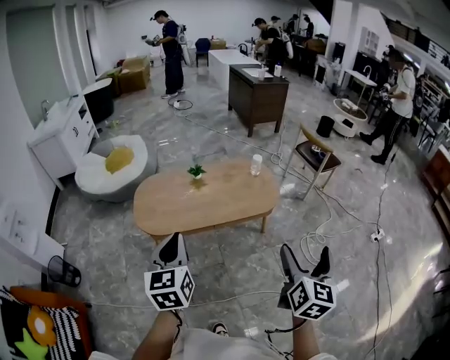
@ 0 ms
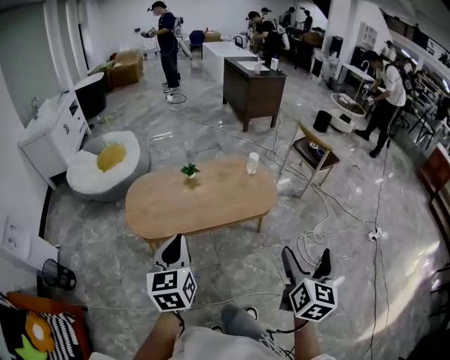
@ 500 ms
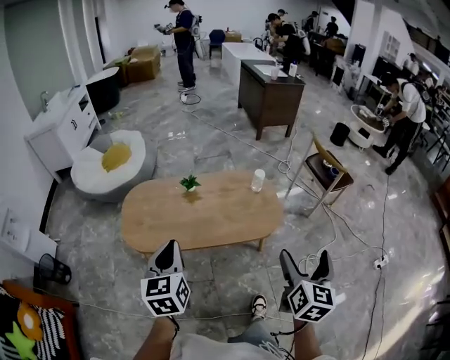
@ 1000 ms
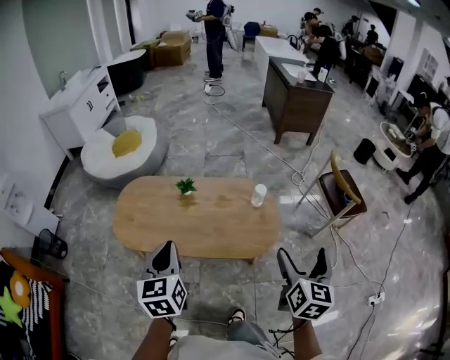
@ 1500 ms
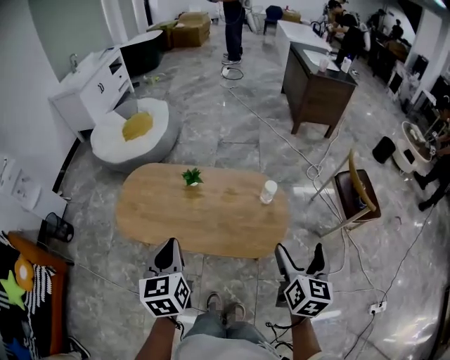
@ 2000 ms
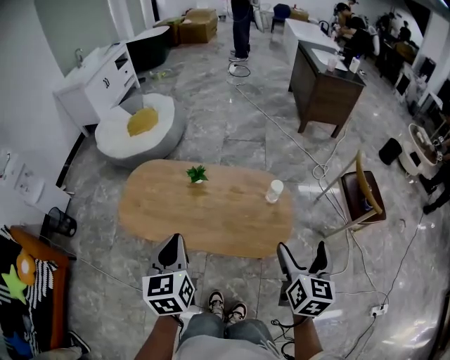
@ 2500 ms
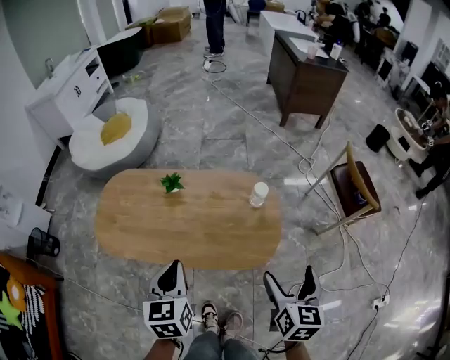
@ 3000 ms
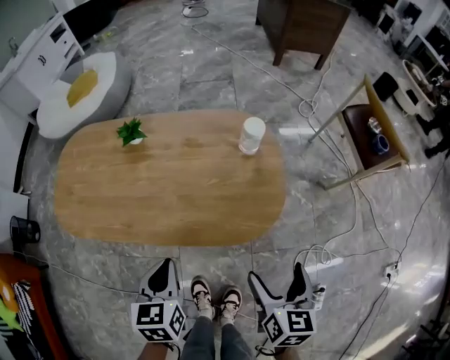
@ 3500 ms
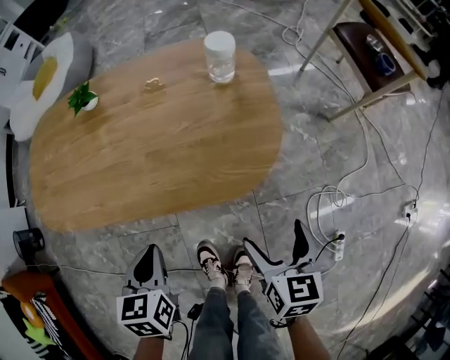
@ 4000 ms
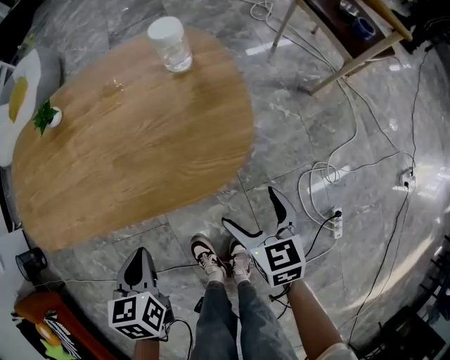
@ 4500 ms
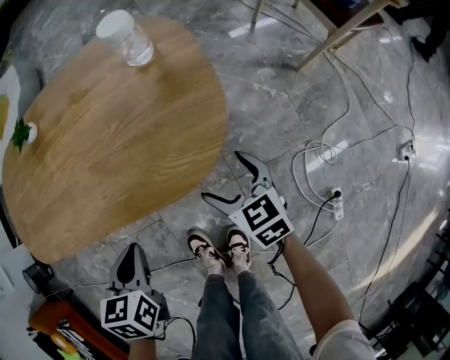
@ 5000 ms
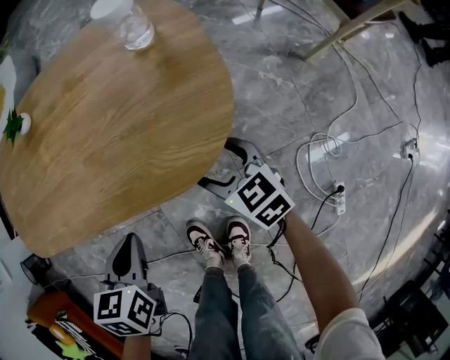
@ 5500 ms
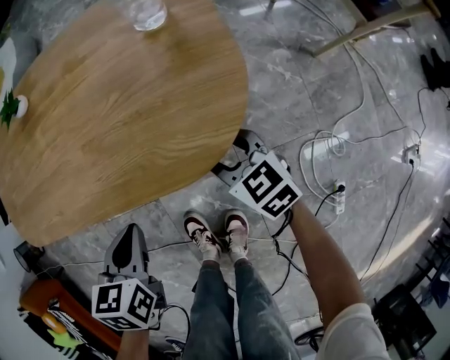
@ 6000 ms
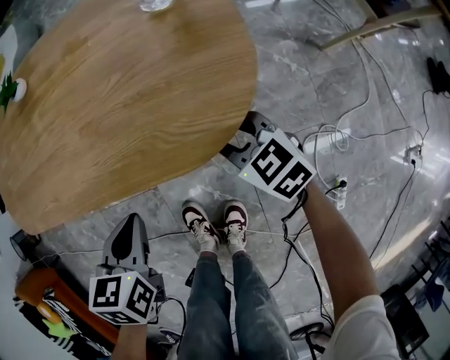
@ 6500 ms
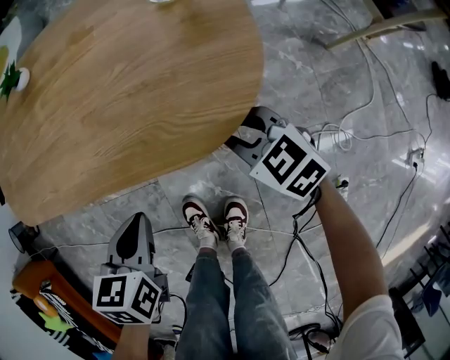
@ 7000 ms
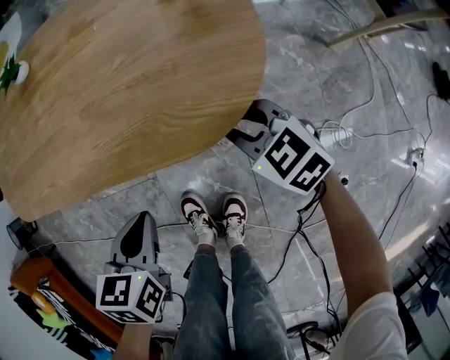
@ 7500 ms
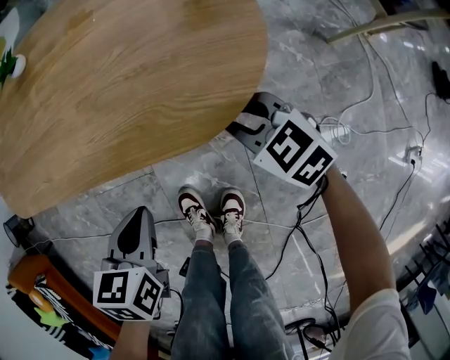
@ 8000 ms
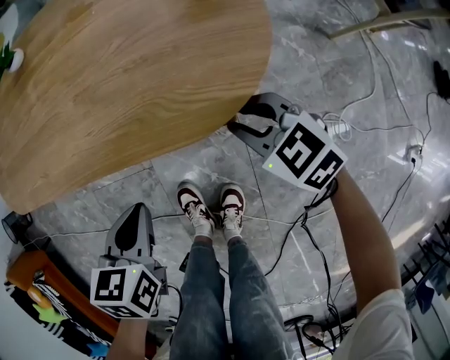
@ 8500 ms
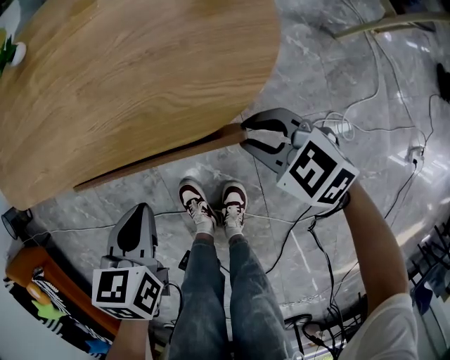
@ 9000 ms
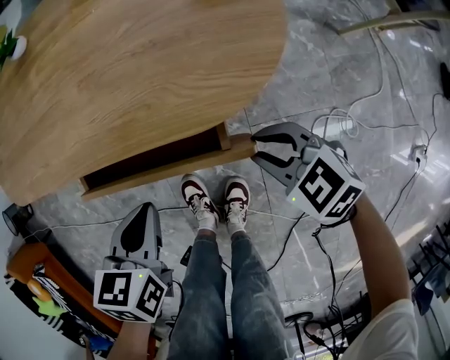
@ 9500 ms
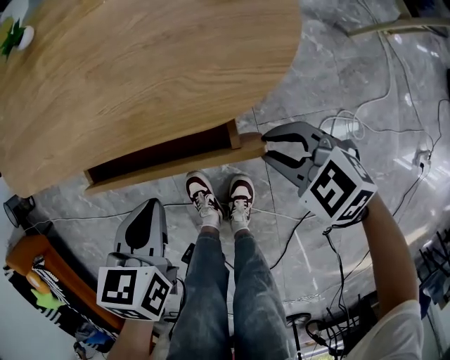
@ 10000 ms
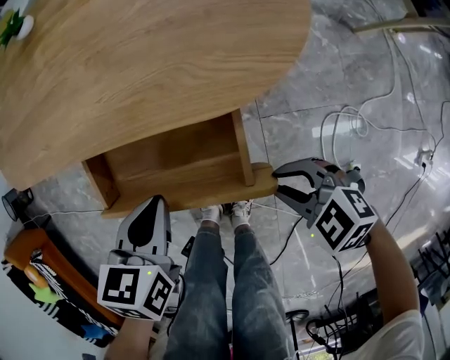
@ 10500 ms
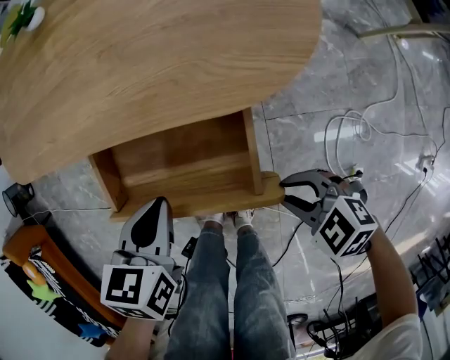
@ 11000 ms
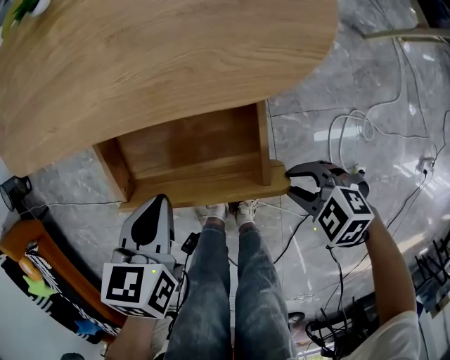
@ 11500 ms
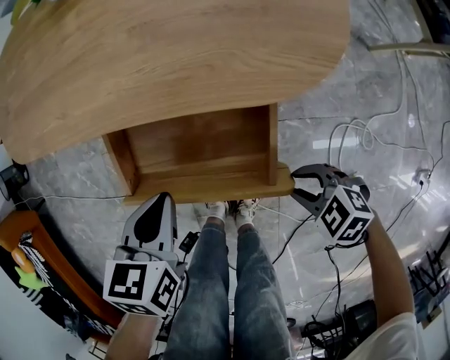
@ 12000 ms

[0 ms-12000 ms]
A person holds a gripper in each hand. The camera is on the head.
0 ms to 2000 ms: The left gripper shifts by about 35 cm, and rotates roughly 30 degrees. Meanwhile the right gripper ends up approximately 50 cm from where it was, and rotates some 30 degrees.
2000 ms to 4000 ms: Both grippers move downward, approximately 40 cm. The left gripper rotates roughly 30 degrees.
4000 ms to 6000 ms: The right gripper heads downward and forward, covering roughly 15 cm, changes its angle by some 40 degrees, and closes its fingers, while the left gripper moves downward and to the right, approximately 10 cm.
6000 ms to 8000 ms: The grippers make only small movements.
8000 ms to 10000 ms: The right gripper moves backward, approximately 10 cm.
10000 ms to 12000 ms: The left gripper heads to the left, covering some 5 cm; the right gripper is displaced backward, to the left and downward by roughly 15 cm.

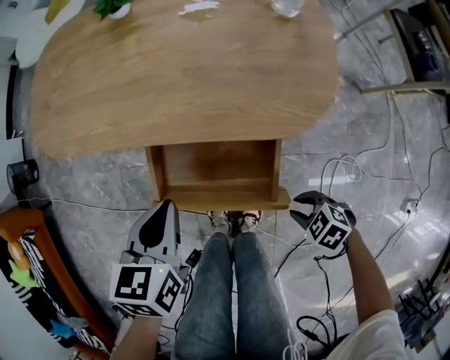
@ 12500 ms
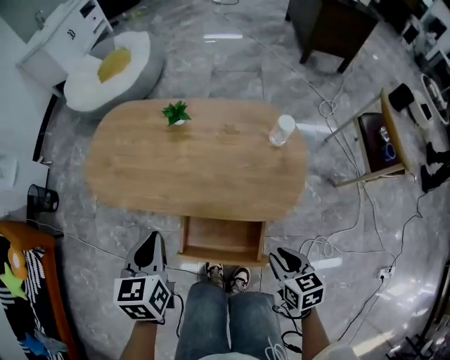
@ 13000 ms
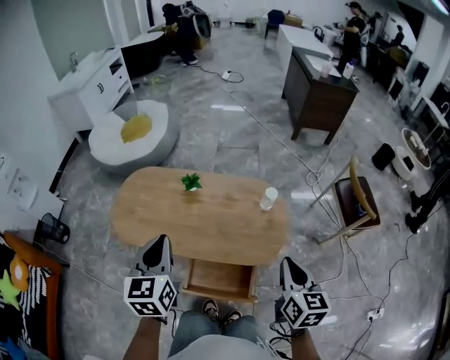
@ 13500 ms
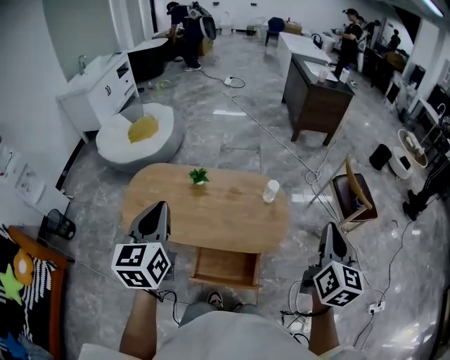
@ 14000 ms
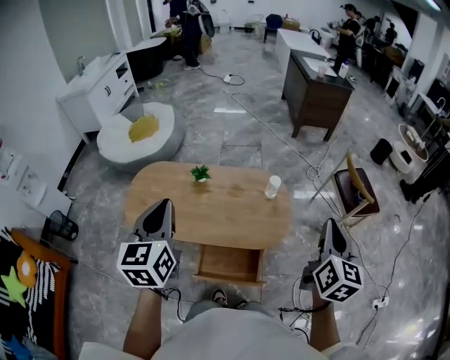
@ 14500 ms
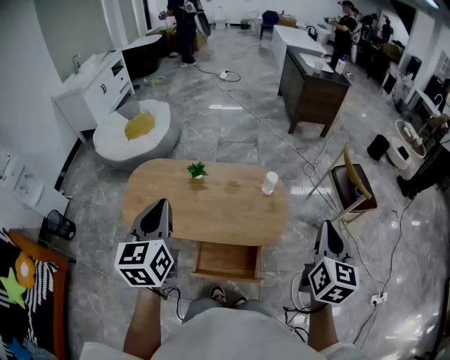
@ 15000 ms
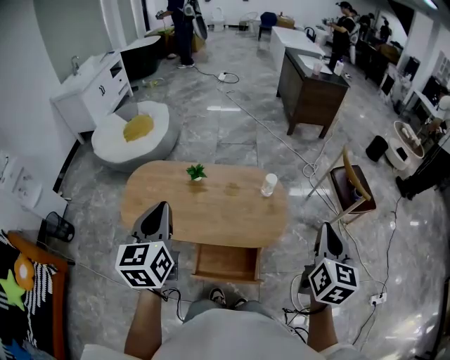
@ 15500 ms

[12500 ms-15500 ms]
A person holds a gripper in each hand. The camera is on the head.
12500 ms to 14000 ms: The two grippers go about 60 cm upward. The right gripper tips its fingers upward by about 60 degrees. The left gripper angles its fingers upward, by approximately 40 degrees.
14000 ms to 15500 ms: The grippers make only small movements.

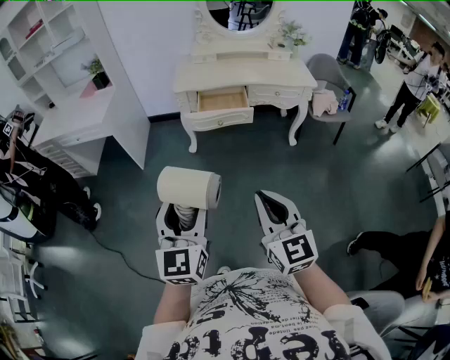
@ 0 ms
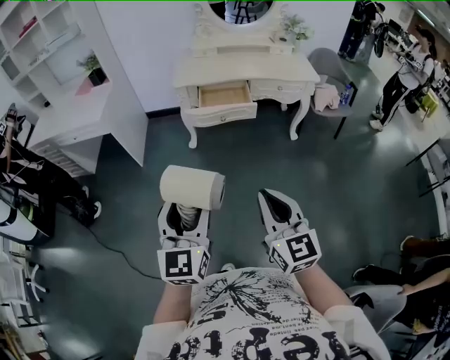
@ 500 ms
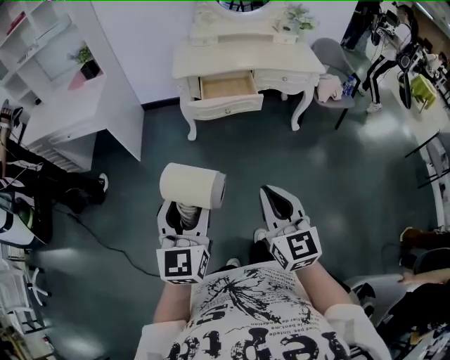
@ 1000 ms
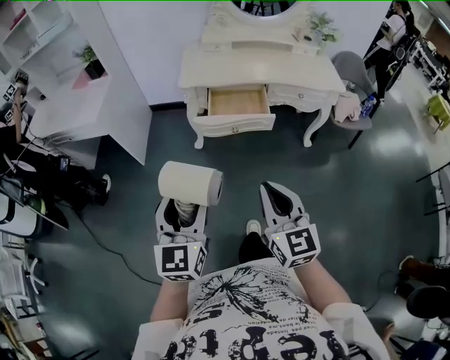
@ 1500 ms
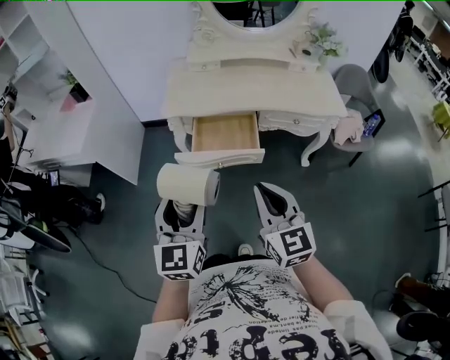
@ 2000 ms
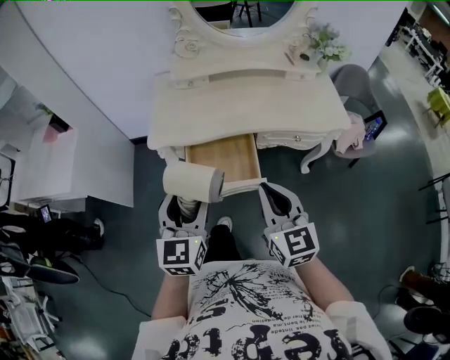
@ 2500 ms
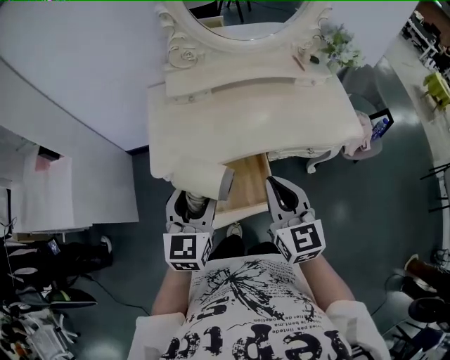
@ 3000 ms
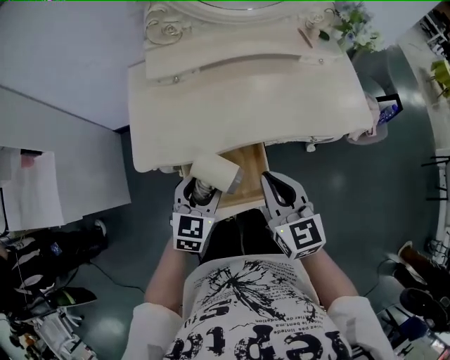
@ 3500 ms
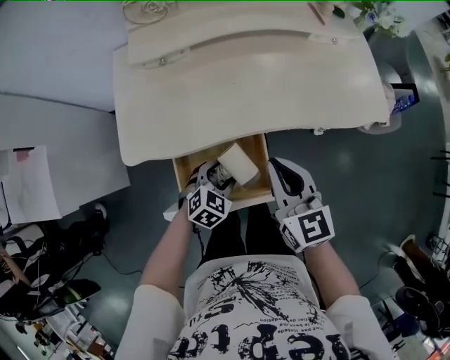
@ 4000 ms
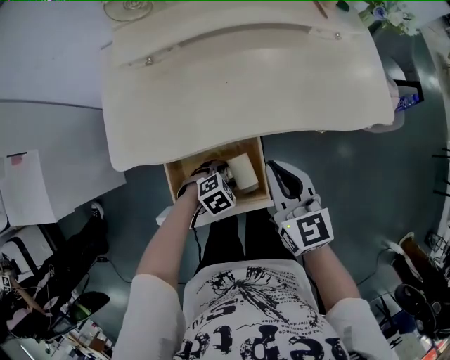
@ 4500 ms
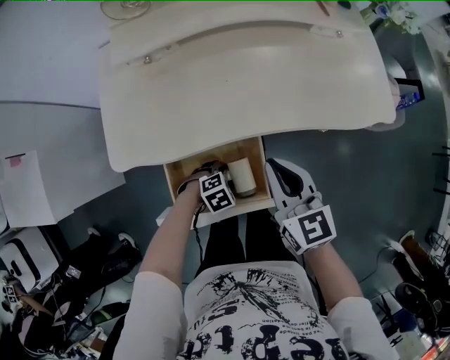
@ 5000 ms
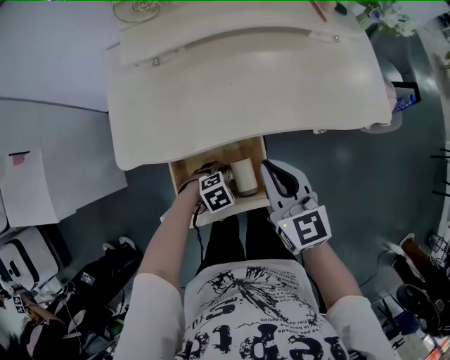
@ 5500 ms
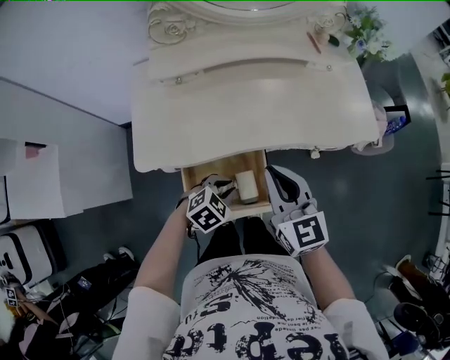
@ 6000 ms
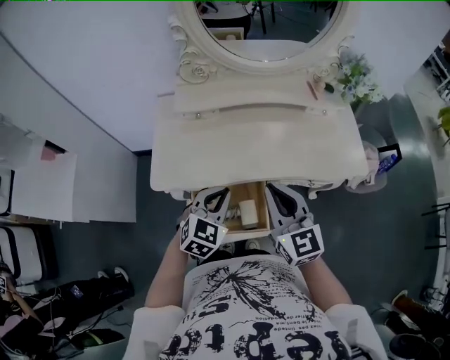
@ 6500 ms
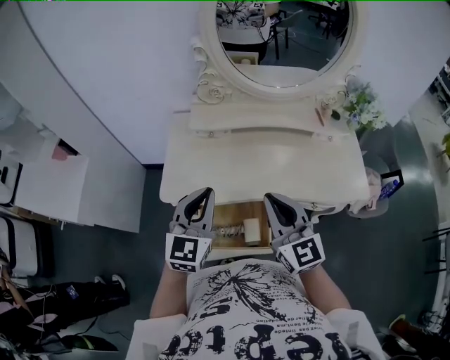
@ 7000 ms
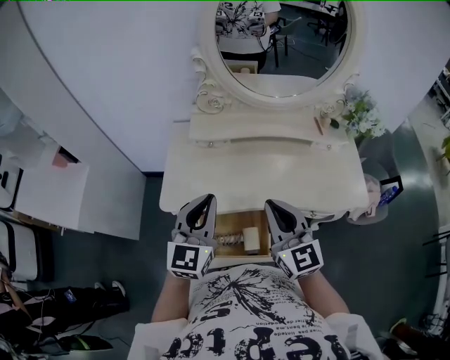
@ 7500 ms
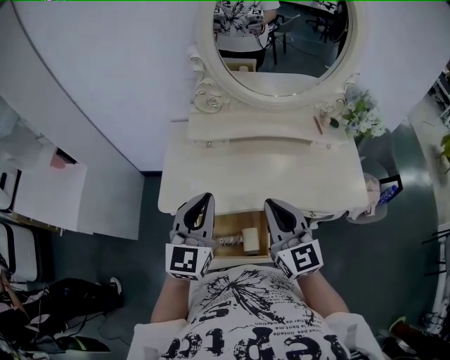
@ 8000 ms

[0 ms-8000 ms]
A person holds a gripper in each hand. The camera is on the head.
0 ms to 2000 ms: The grippers both shift forward by about 40 cm.
2000 ms to 4000 ms: The right gripper changes place by about 40 cm. The left gripper changes place by roughly 50 cm, and tilts its fingers some 40 degrees downward.
4000 ms to 6000 ms: The right gripper travels upward by approximately 5 cm. Meanwhile the left gripper reaches some 10 cm downward, then returns, and closes up.
6000 ms to 8000 ms: The left gripper travels upward by about 30 cm, and tilts its fingers approximately 50 degrees upward. The right gripper travels upward by approximately 10 cm.

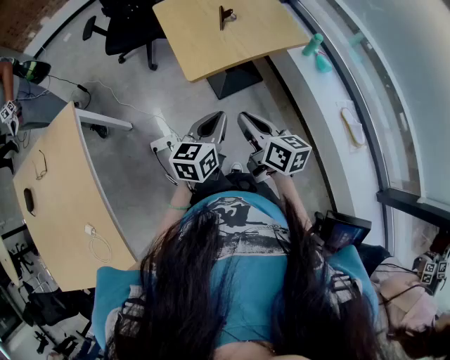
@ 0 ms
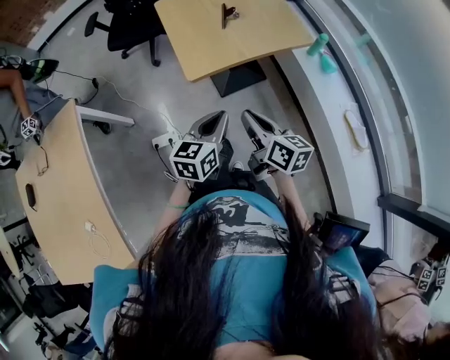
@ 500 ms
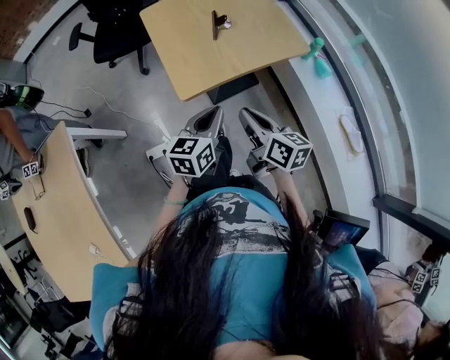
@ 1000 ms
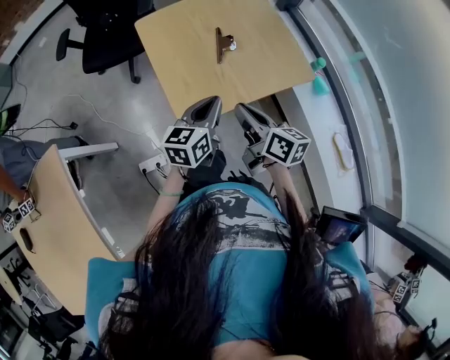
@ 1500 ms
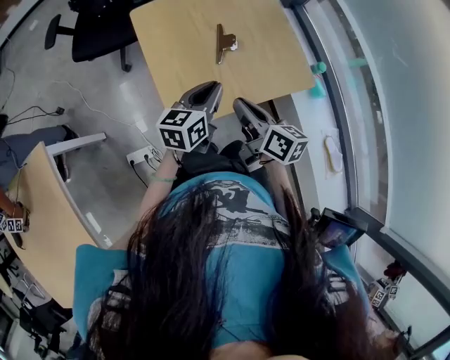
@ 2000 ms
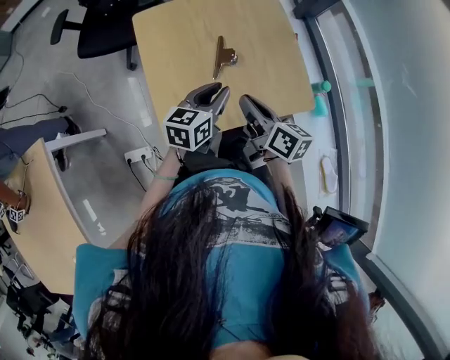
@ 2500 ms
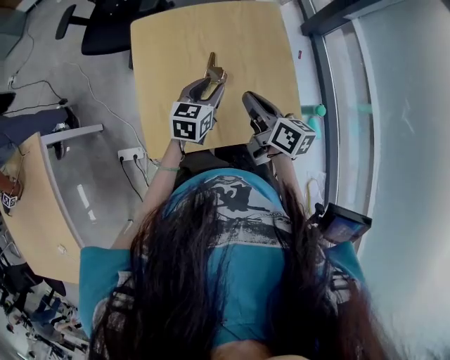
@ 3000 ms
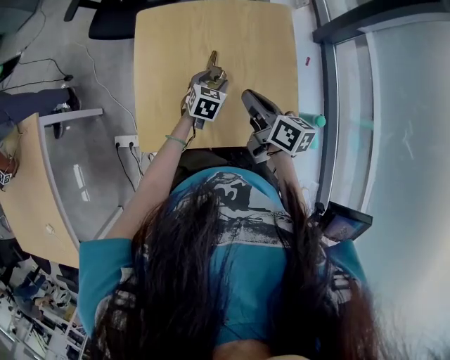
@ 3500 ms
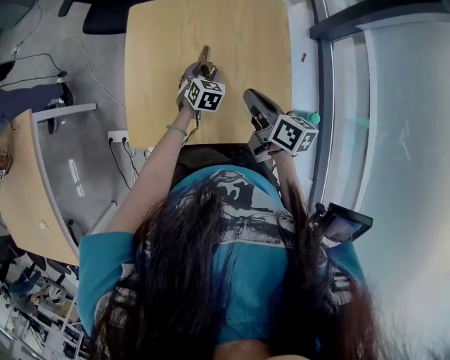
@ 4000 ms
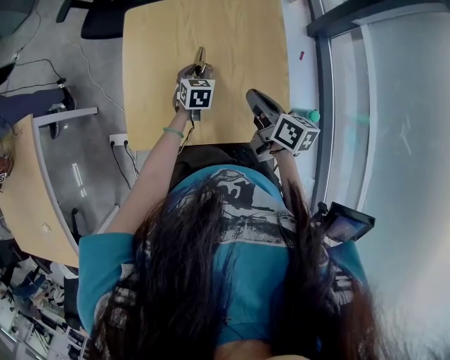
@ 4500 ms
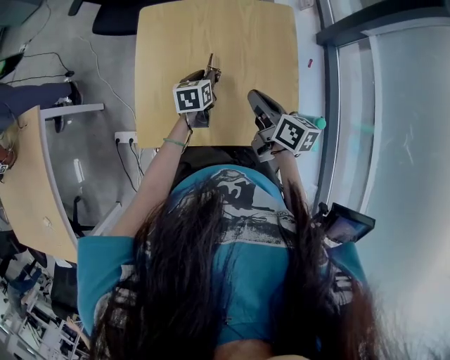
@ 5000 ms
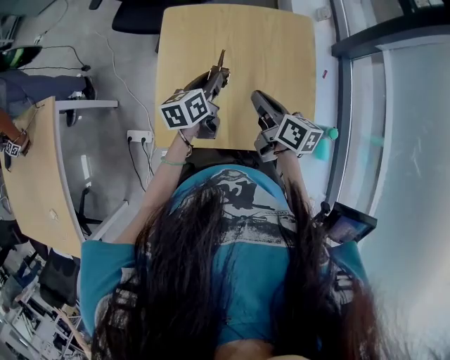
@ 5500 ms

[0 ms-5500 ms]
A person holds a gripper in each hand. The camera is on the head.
0 ms to 2000 ms: The two grippers go about 35 cm forward.
2000 ms to 3500 ms: The left gripper heads forward, downward and to the right, covering some 30 cm, swivels approximately 40 degrees, and opens its fingers, while the right gripper moves forward and to the right, about 30 cm.
3500 ms to 5500 ms: The left gripper shifts about 20 cm to the left and upward, rotates around the line of its fingers by approximately 40 degrees, counterclockwise from behind, and closes its fingers; the right gripper travels to the left by some 10 cm.
